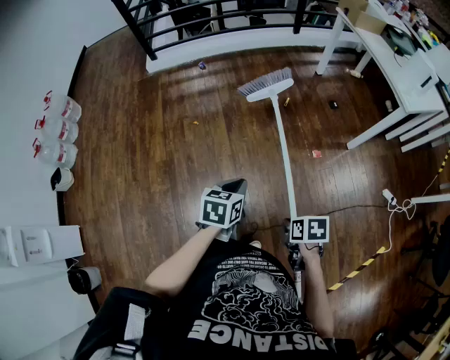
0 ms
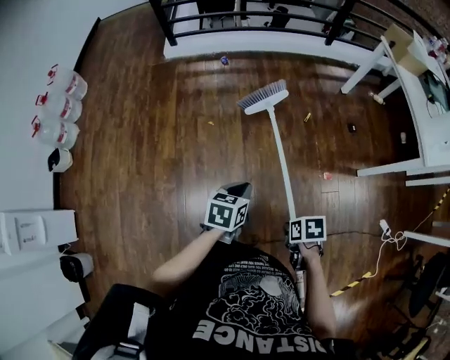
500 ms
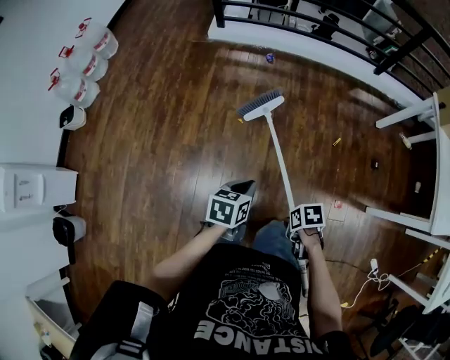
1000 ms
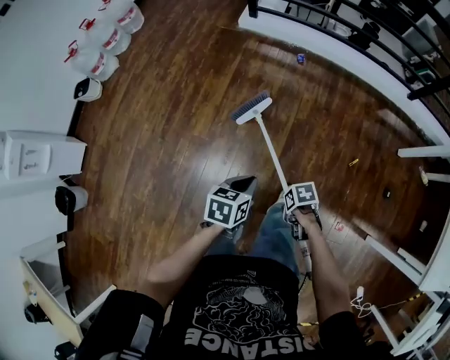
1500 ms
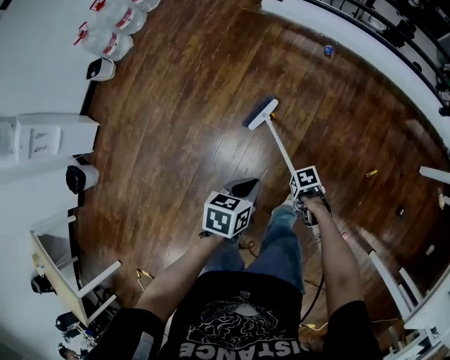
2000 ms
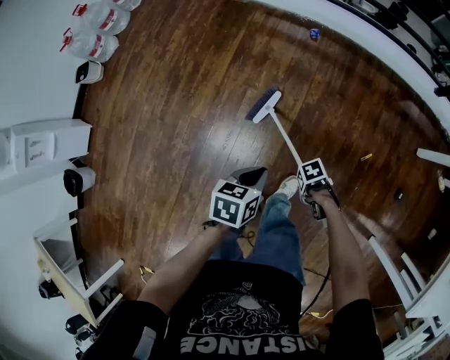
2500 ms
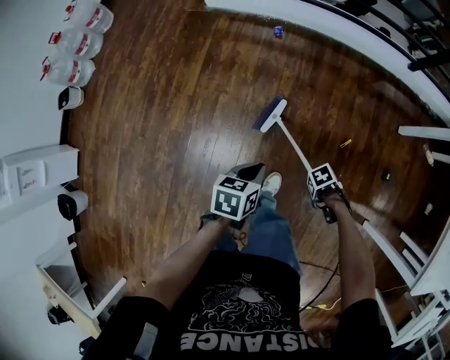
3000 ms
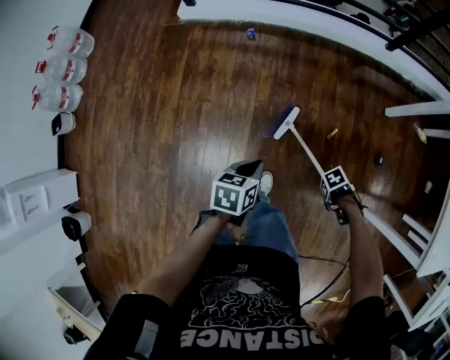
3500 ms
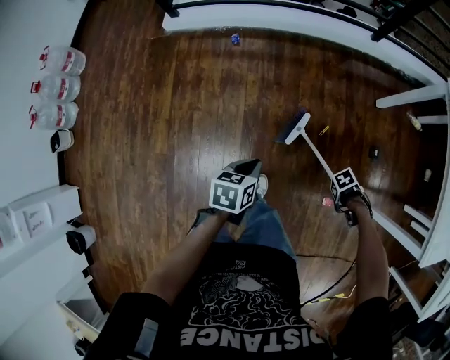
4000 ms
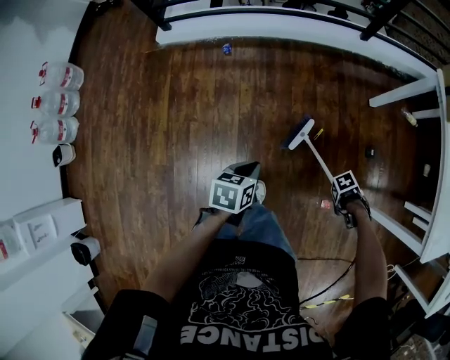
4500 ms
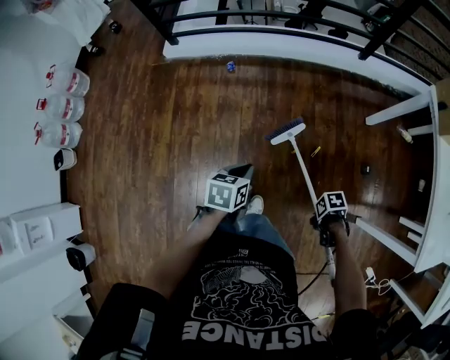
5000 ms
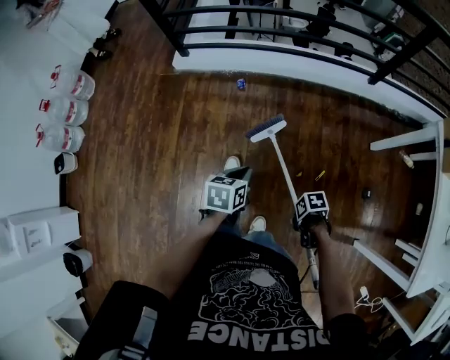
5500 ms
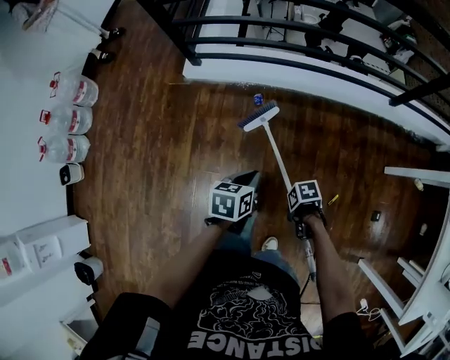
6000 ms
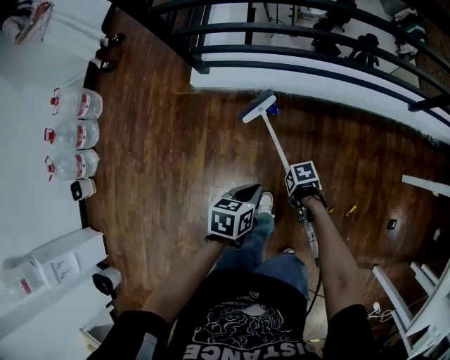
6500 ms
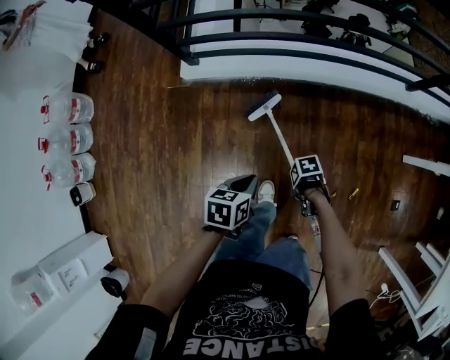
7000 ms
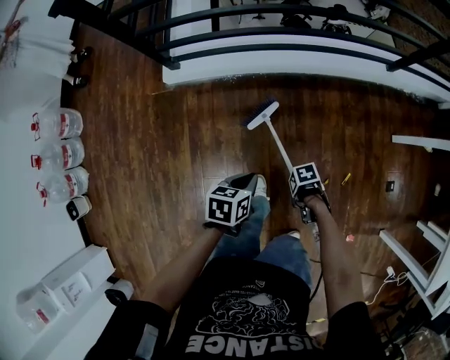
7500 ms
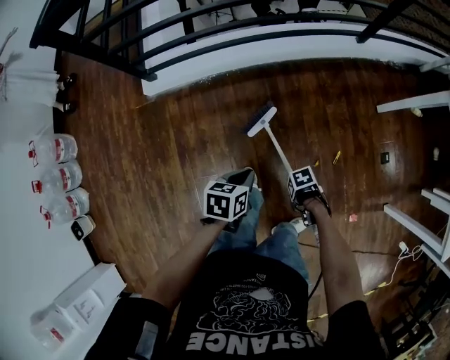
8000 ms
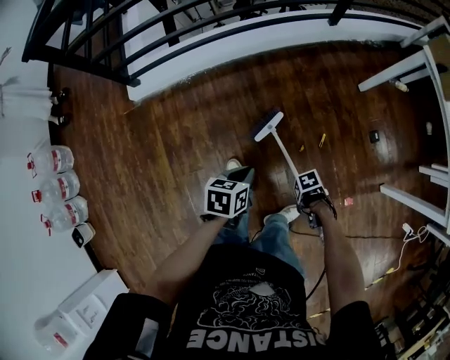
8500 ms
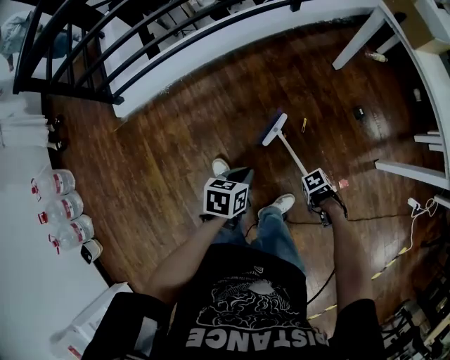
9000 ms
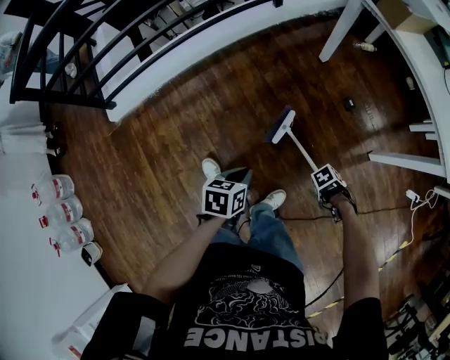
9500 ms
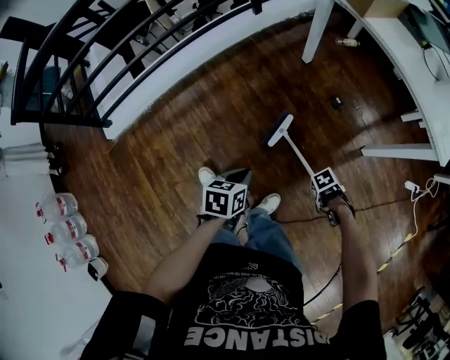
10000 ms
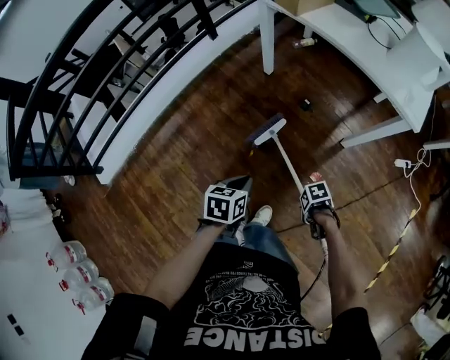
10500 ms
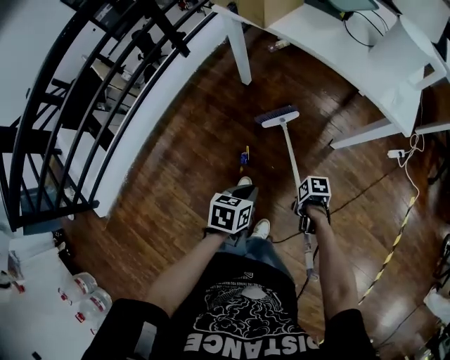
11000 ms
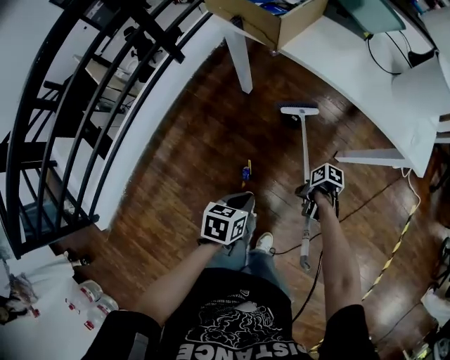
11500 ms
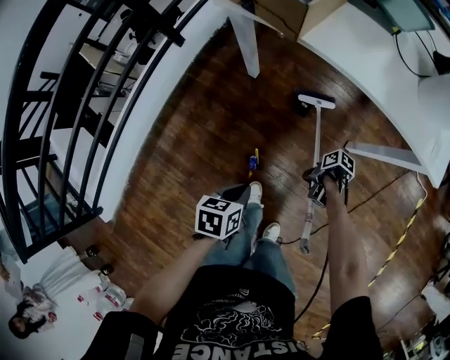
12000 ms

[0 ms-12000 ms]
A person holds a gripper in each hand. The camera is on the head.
0 ms to 2000 ms: The left gripper changes place by approximately 40 cm, and changes its angle by some 40 degrees.
2000 ms to 4000 ms: The left gripper moves some 25 cm, and turns by some 20 degrees.
4000 ms to 6000 ms: The left gripper ends up some 35 cm from where it was.
6000 ms to 8000 ms: The left gripper swivels about 20 degrees.
8000 ms to 10000 ms: The left gripper ends up approximately 40 cm from where it was, and rotates roughly 20 degrees.
10000 ms to 12000 ms: The left gripper shifts by roughly 30 cm, and changes its angle by approximately 20 degrees.

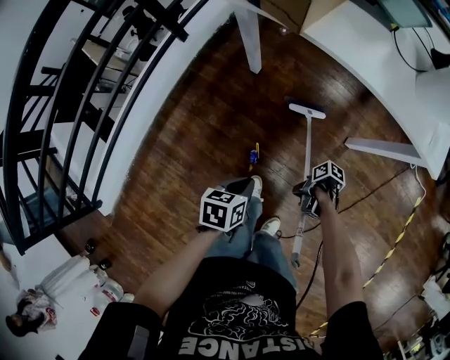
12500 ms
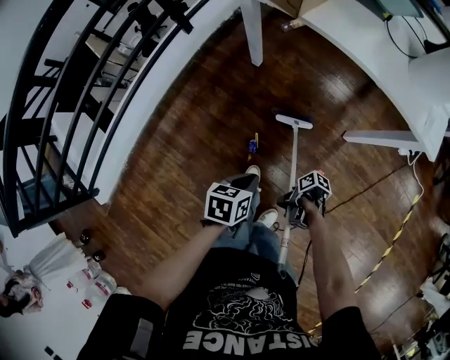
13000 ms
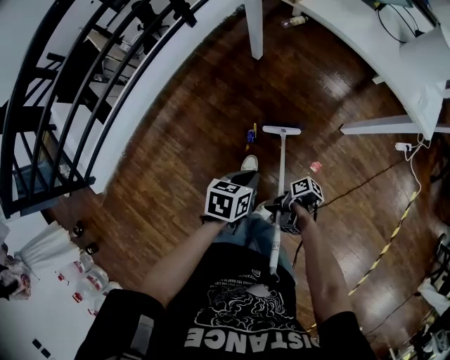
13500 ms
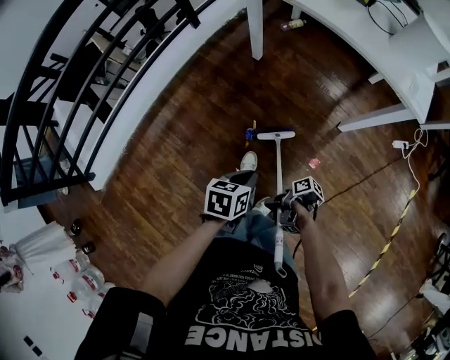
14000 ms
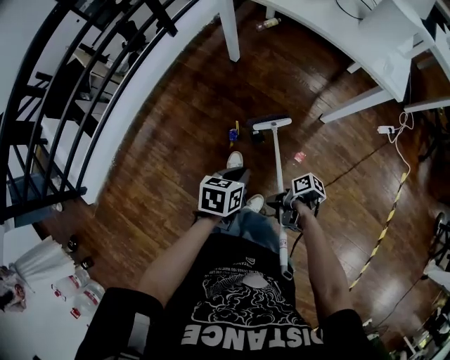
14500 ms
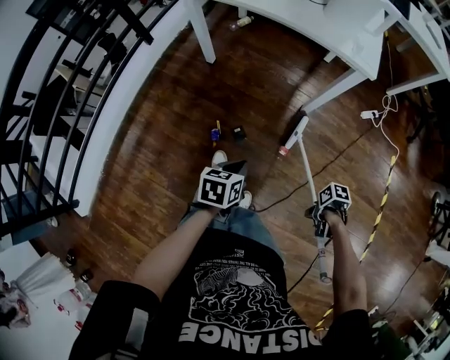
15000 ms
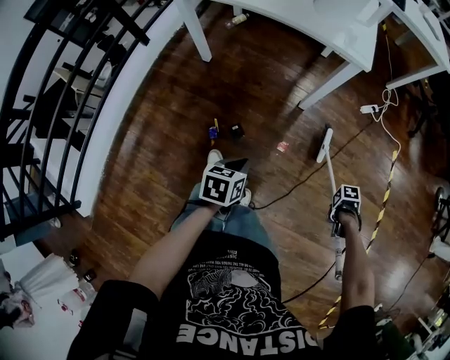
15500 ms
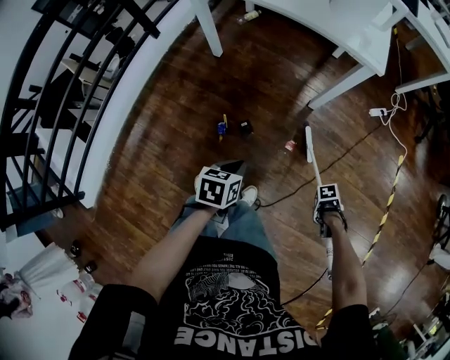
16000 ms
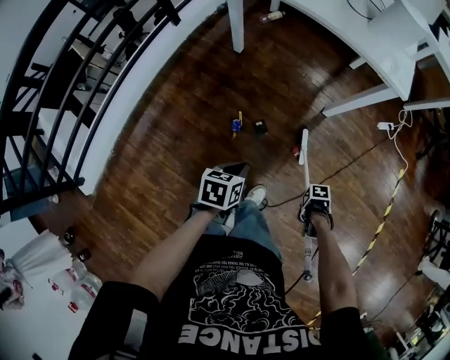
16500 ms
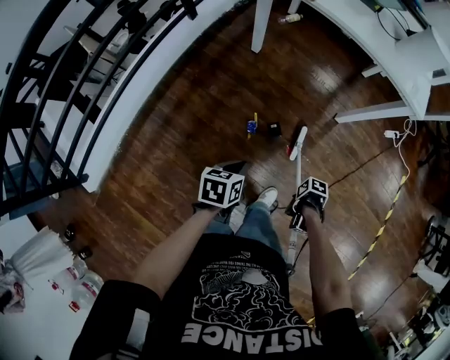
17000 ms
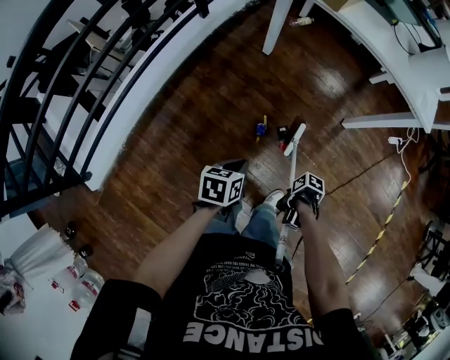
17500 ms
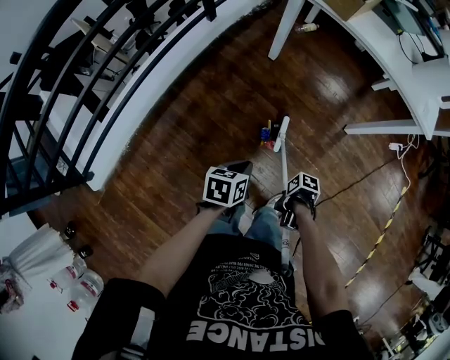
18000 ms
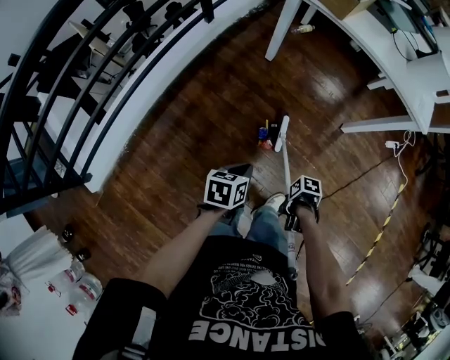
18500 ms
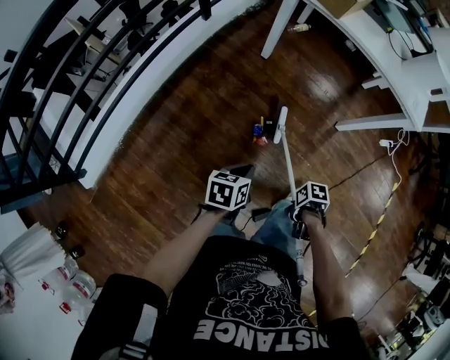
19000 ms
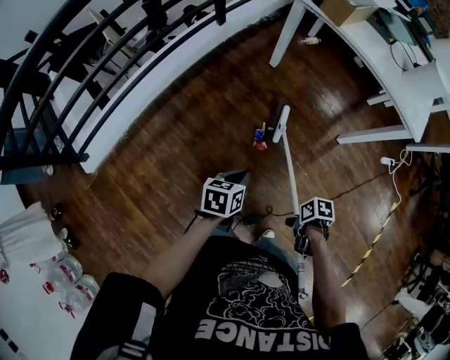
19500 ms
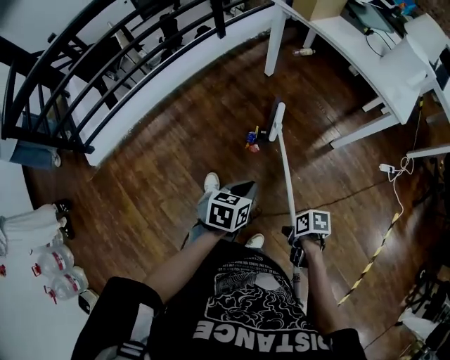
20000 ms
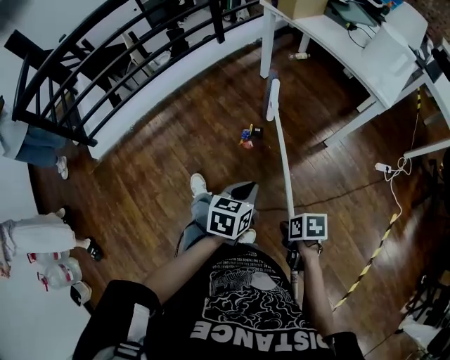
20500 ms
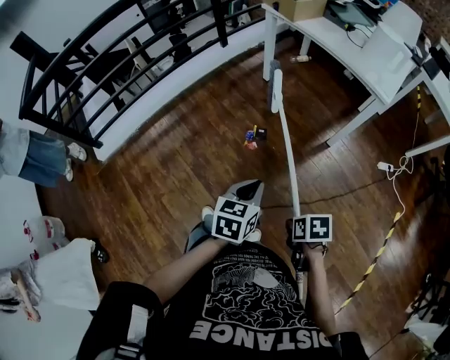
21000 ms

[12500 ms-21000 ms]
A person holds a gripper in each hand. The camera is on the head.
12500 ms to 14500 ms: The left gripper shifts by some 20 cm.
16500 ms to 19000 ms: The left gripper changes place by about 15 cm.
19000 ms to 21000 ms: The left gripper ends up approximately 40 cm from where it was, and changes its angle by roughly 30 degrees.

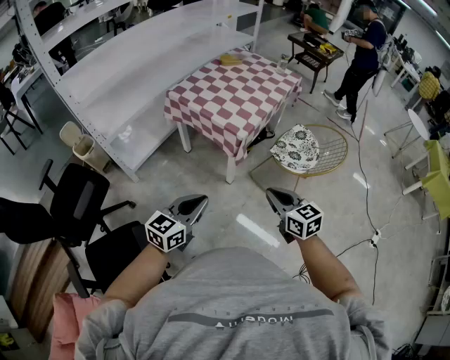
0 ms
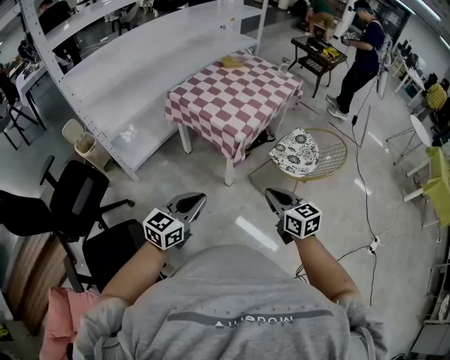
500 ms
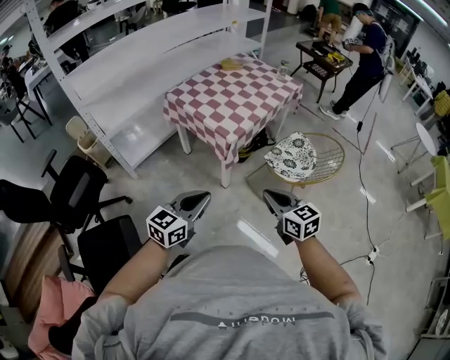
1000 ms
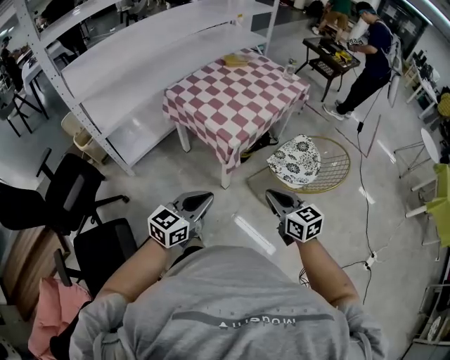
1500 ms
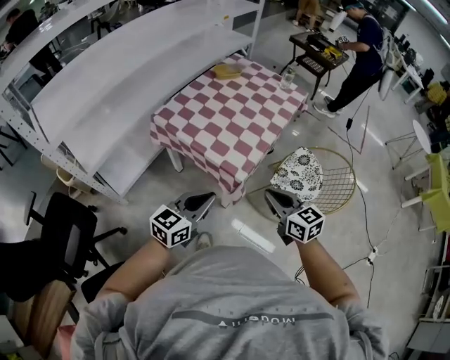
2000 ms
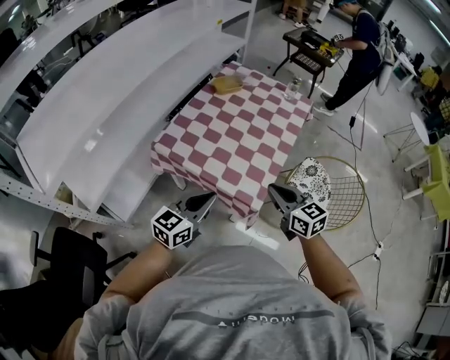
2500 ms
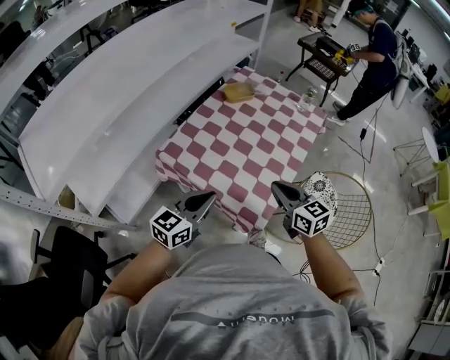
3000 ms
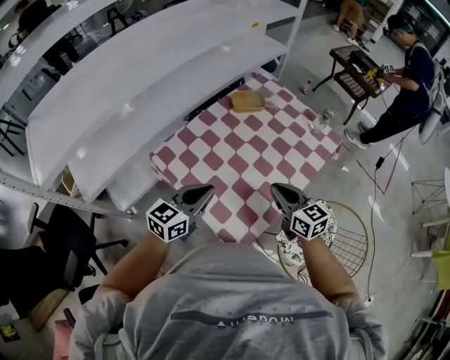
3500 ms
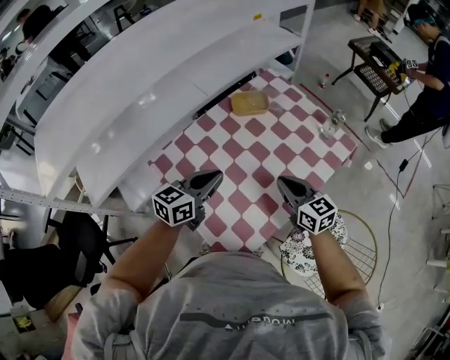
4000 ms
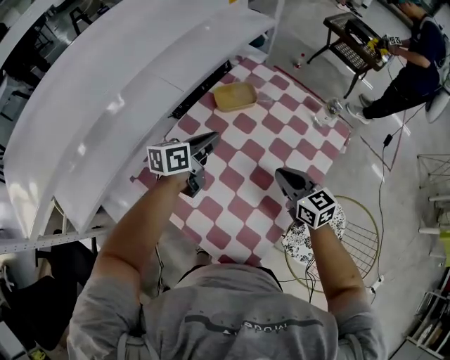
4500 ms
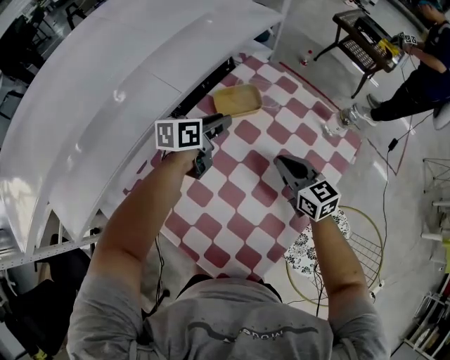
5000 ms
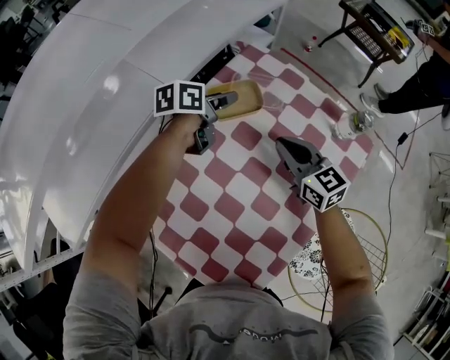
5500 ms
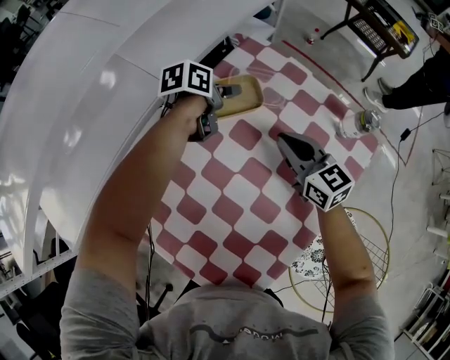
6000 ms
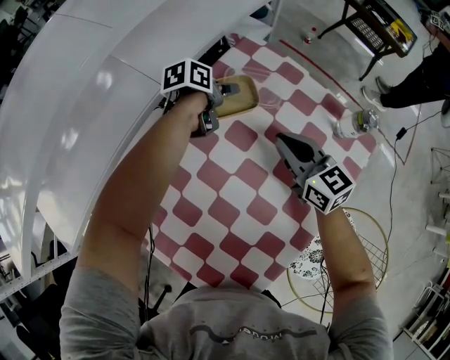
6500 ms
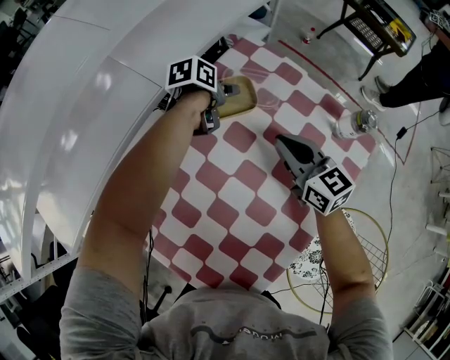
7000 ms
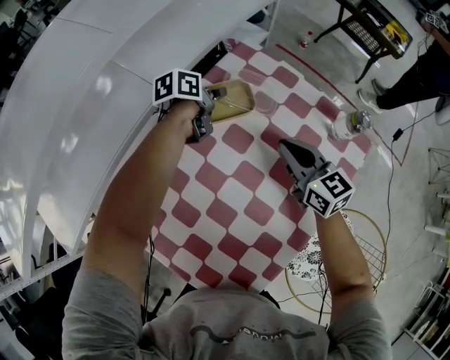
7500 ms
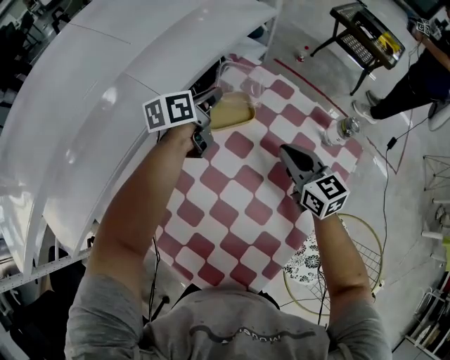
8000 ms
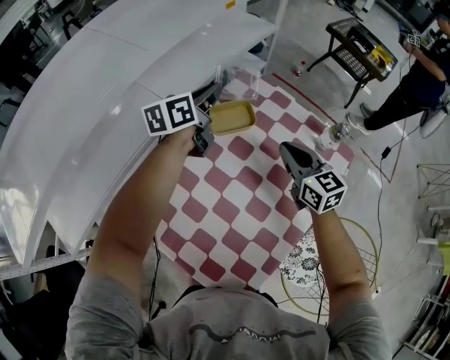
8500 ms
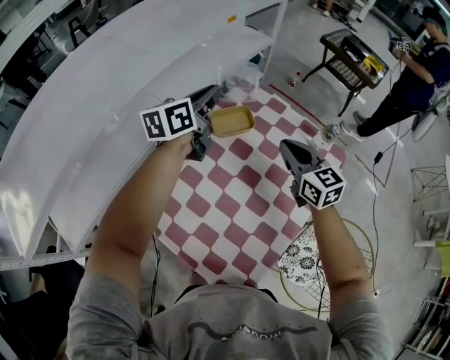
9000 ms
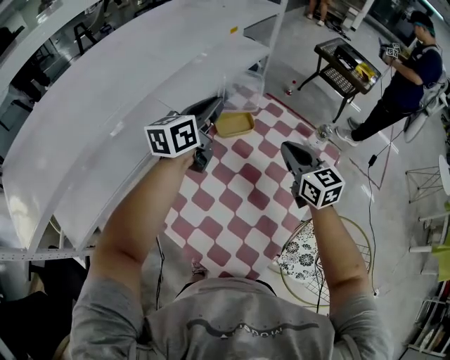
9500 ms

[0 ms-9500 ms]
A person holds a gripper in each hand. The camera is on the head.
0 ms to 2000 ms: The grippers both shift forward by roughly 25 cm.
2000 ms to 4000 ms: Both grippers are carried forward, about 40 cm.
4000 ms to 5500 ms: The right gripper is displaced forward by about 20 cm. Meanwhile the left gripper shifts some 35 cm forward, changes its angle by roughly 30 degrees, and opens.
5500 ms to 7500 ms: The left gripper shifts by roughly 5 cm, and closes up.
7500 ms to 9500 ms: The left gripper travels upward and backward by approximately 35 cm, and tilts its fingers approximately 30 degrees upward. Meanwhile the right gripper moves upward and backward, approximately 15 cm.
